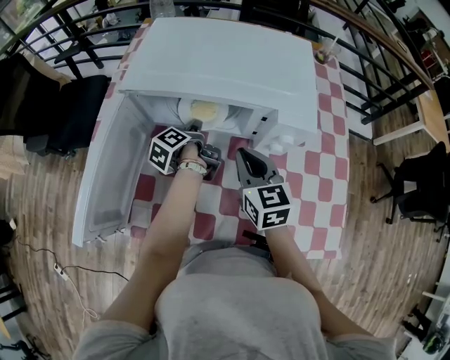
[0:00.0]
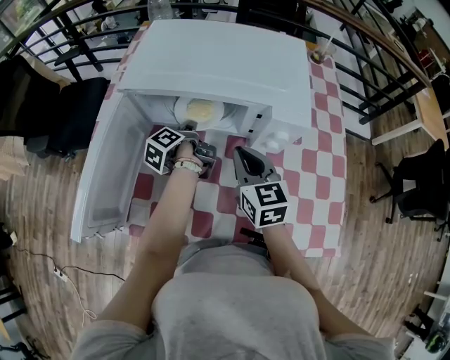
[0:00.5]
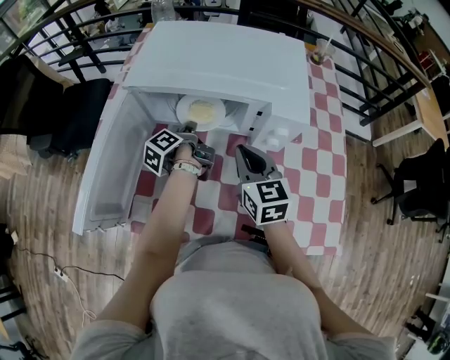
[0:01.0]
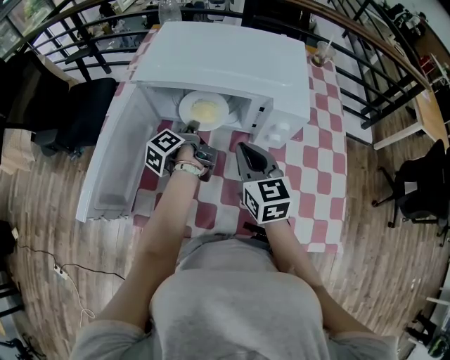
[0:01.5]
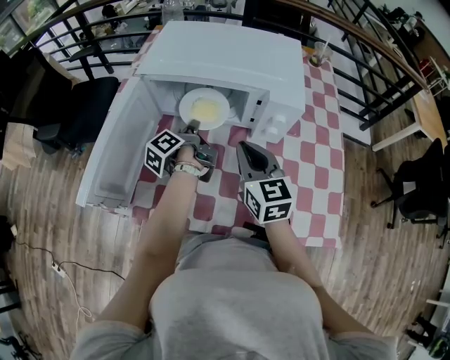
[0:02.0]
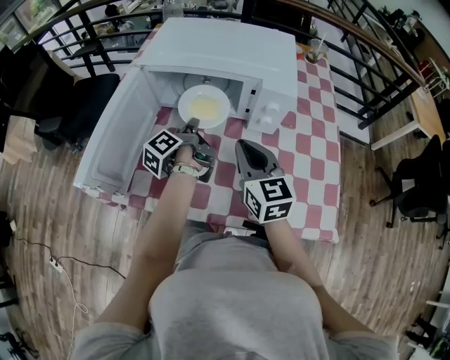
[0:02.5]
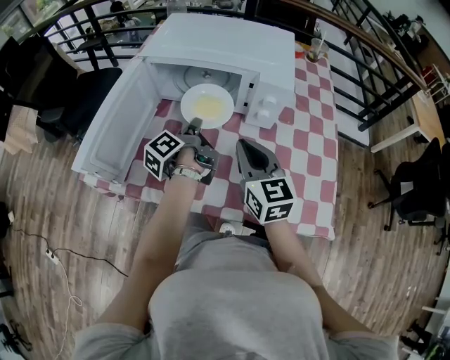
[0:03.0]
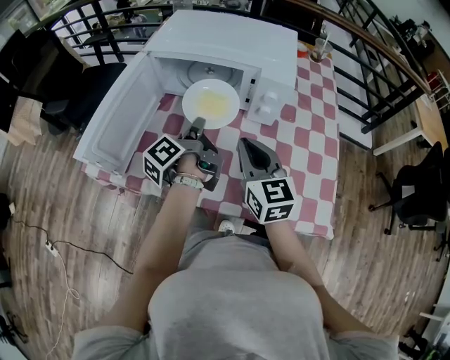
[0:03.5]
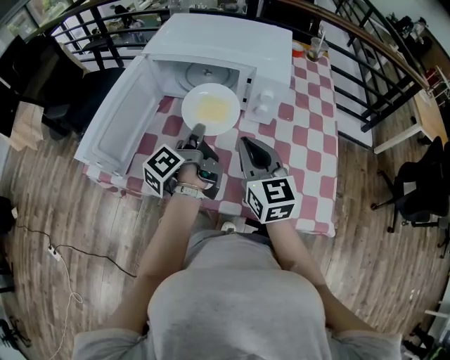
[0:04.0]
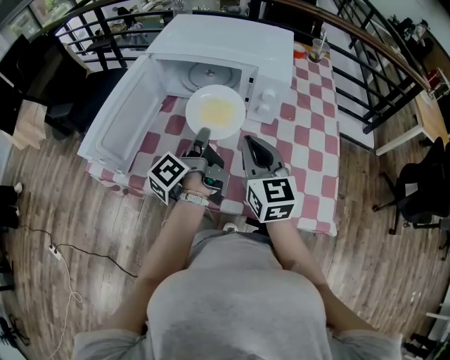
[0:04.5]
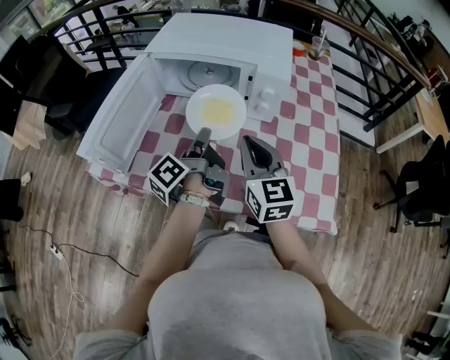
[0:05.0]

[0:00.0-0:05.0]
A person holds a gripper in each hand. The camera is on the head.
0:00.0 to 0:02.5: The two grippers go about 10 cm backward and upward.
0:02.5 to 0:05.0: The right gripper travels backward by approximately 5 cm. Meanwhile the left gripper is displaced backward and upward by approximately 15 cm.

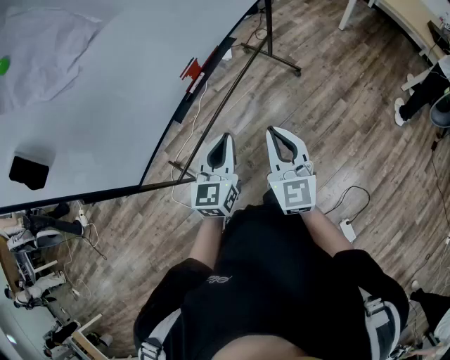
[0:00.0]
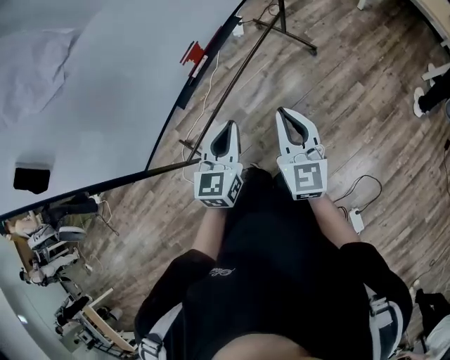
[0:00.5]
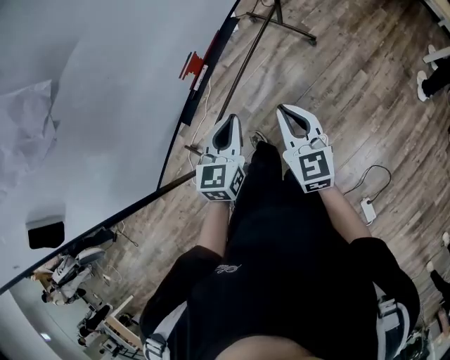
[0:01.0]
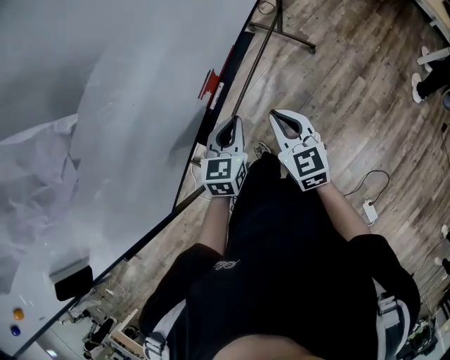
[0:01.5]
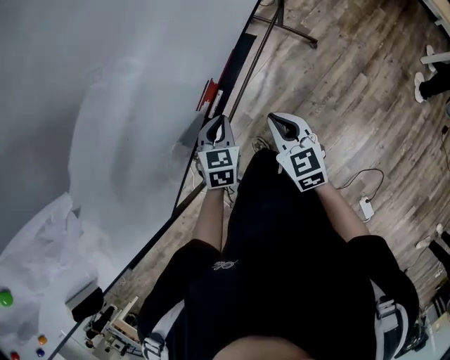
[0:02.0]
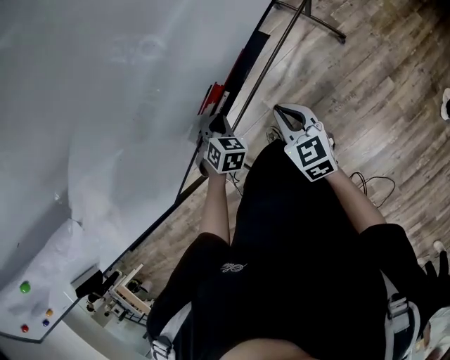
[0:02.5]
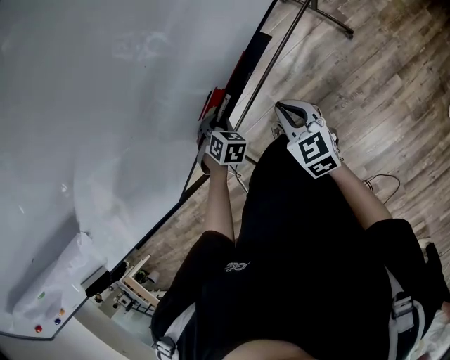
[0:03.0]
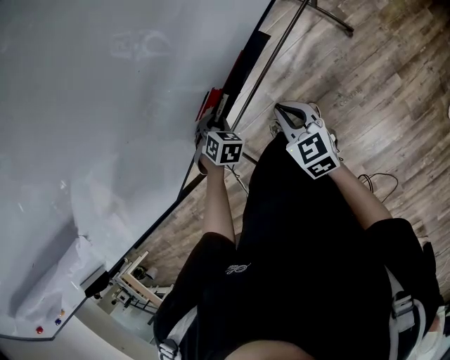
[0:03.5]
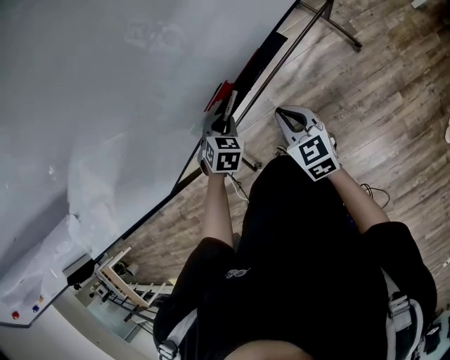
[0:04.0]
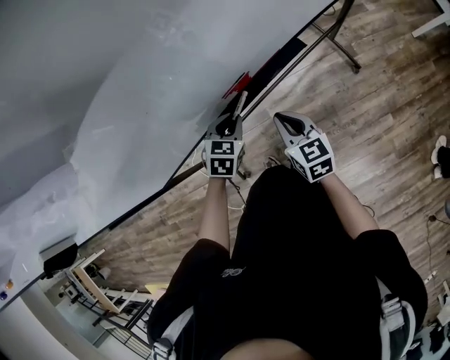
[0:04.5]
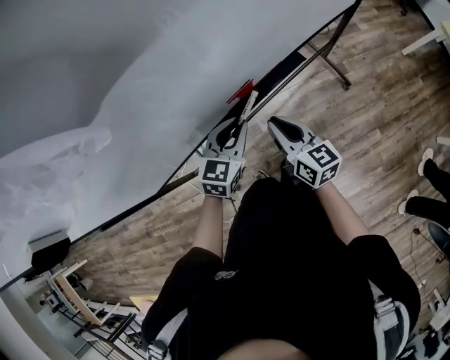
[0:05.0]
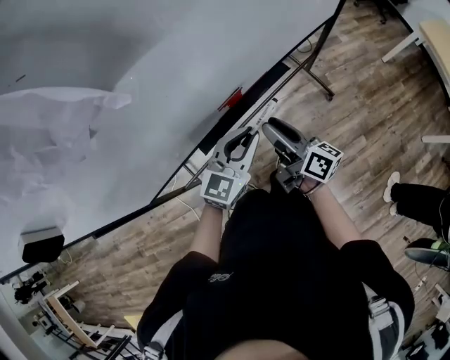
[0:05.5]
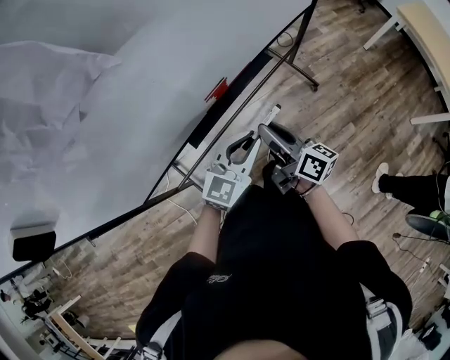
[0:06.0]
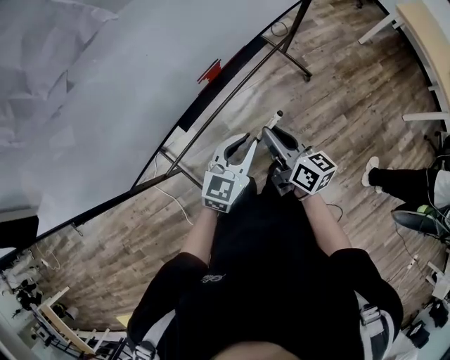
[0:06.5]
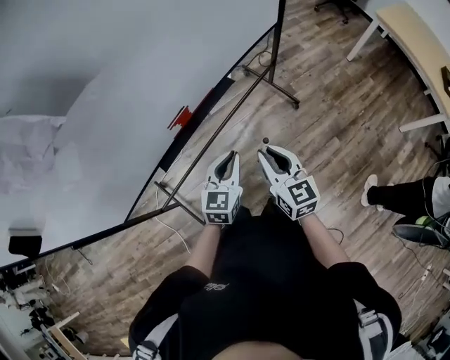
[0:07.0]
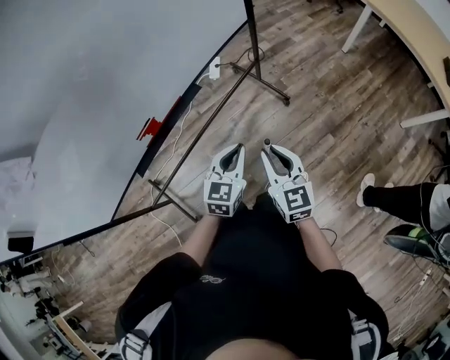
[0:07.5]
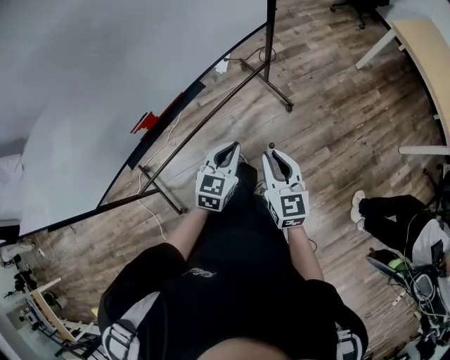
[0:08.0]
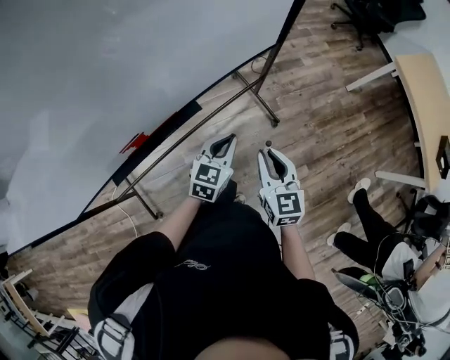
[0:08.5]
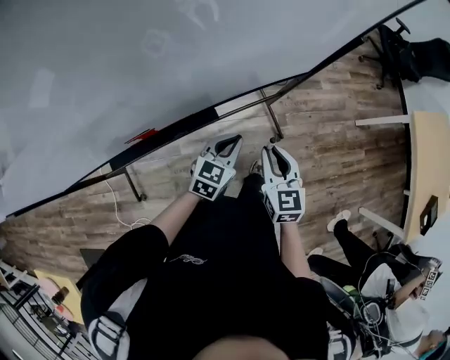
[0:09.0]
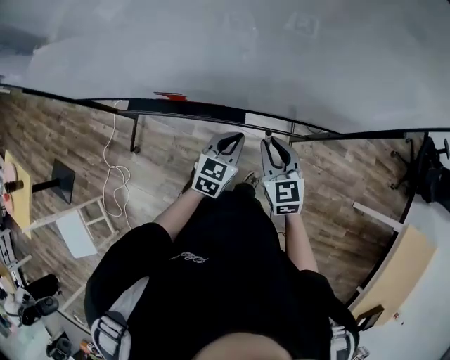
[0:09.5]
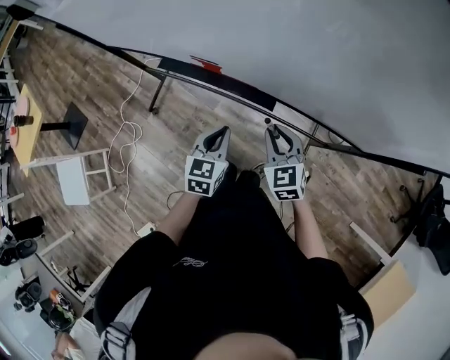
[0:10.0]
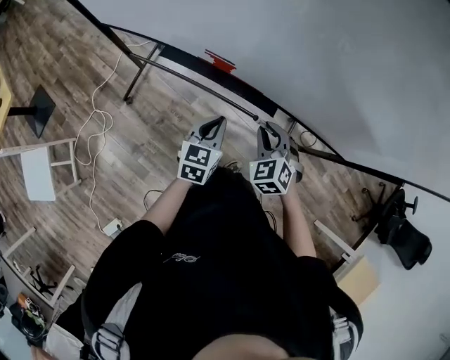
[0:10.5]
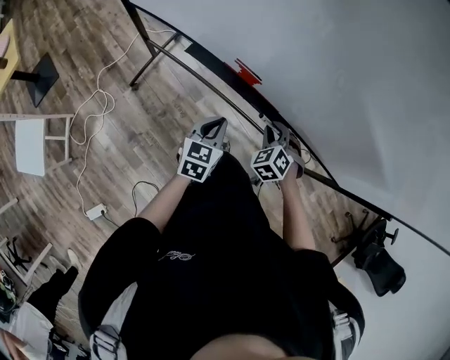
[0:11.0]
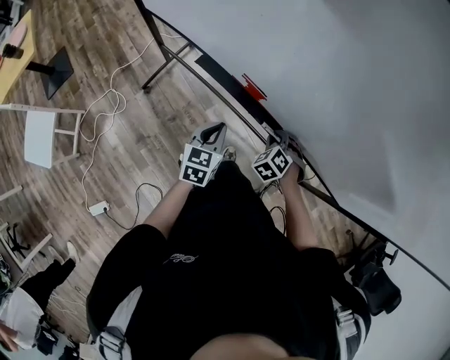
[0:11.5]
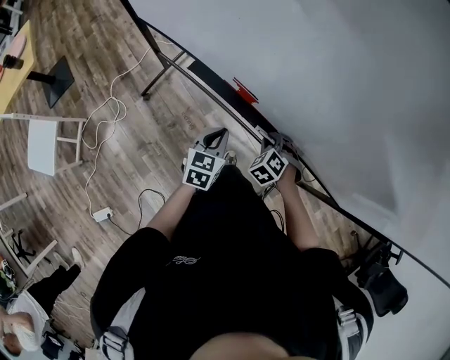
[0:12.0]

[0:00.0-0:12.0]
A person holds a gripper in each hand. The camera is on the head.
0:00.0 to 0:02.0: Both grippers travel together forward and downward, roughly 30 cm. The right gripper turns by approximately 20 degrees. Meanwhile the left gripper swivels approximately 30 degrees.
0:02.0 to 0:04.0: The right gripper moves approximately 10 cm, and changes its angle by roughly 20 degrees, while the left gripper travels downward by some 10 cm, and swivels roughly 30 degrees.
0:04.0 to 0:06.0: The left gripper shifts some 20 cm upward, and tips its fingers upward by approximately 50 degrees, while the right gripper is displaced upward by some 10 cm, and turns by roughly 50 degrees.
0:06.0 to 0:08.0: Both grippers travel together to the right, roughly 30 cm. The left gripper changes its angle by roughly 20 degrees. Meanwhile the right gripper rolls counterclockwise, seen from behind, by roughly 40 degrees.
0:08.0 to 0:10.0: The left gripper changes place by about 15 cm, and changes its angle by roughly 70 degrees. The right gripper ends up some 30 cm from where it was, and changes its angle by approximately 80 degrees.
0:10.0 to 0:12.0: The right gripper shifts roughly 20 cm downward, forward and to the left, and points its fingers approximately 30 degrees further downward. Meanwhile the left gripper is displaced to the left and forward by about 10 cm.

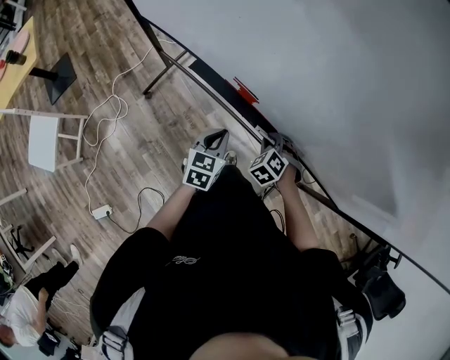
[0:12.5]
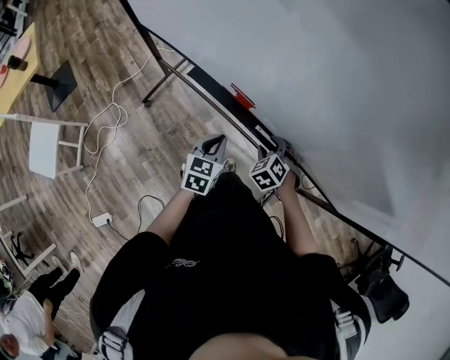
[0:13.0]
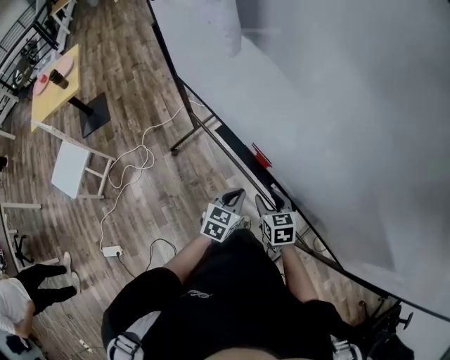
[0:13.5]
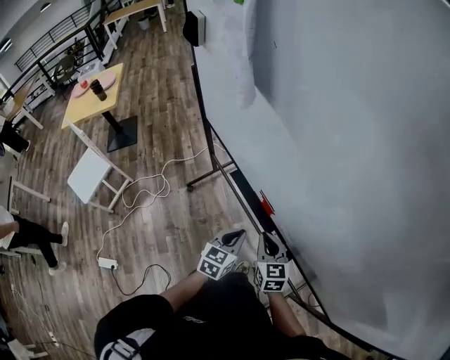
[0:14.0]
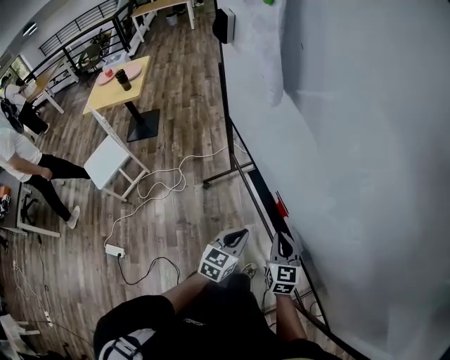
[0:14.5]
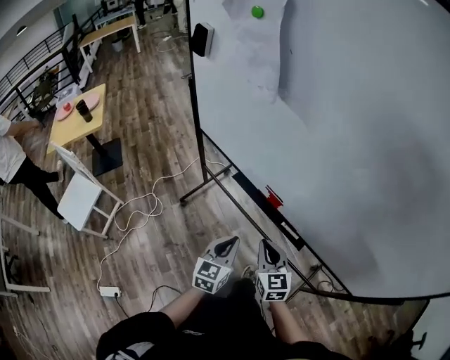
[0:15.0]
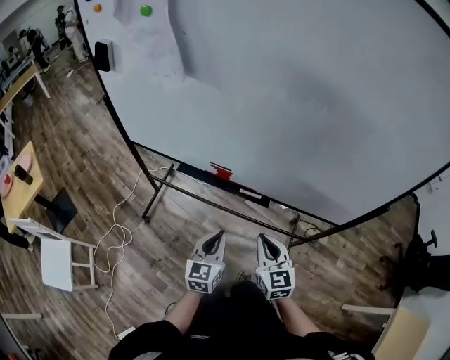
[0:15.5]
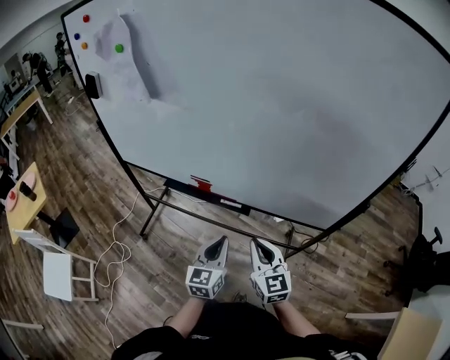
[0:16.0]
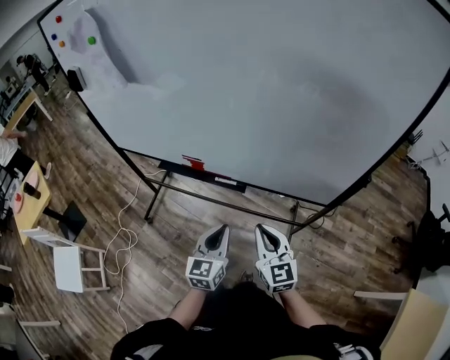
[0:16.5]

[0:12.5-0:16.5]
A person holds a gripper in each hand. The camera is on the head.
0:12.5 to 0:14.5: The right gripper goes about 15 cm upward, angles its fingers upward, by some 40 degrees, and opens, then closes again; the left gripper moves upward, some 10 cm, and turns by some 20 degrees.
0:14.5 to 0:16.5: The left gripper shifts by approximately 25 cm, and changes its angle by about 30 degrees. Meanwhile the right gripper shifts by some 35 cm, and swivels about 30 degrees.

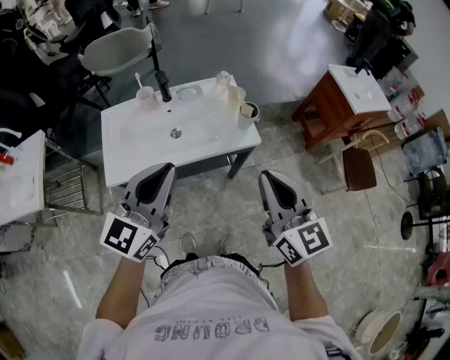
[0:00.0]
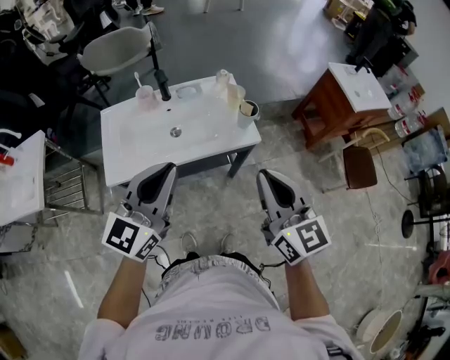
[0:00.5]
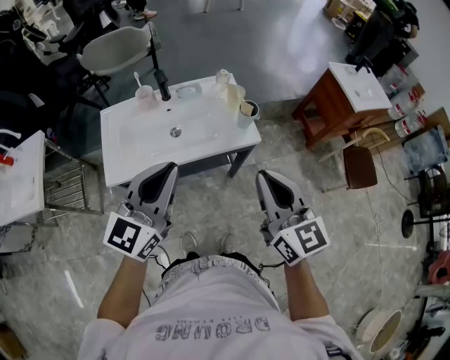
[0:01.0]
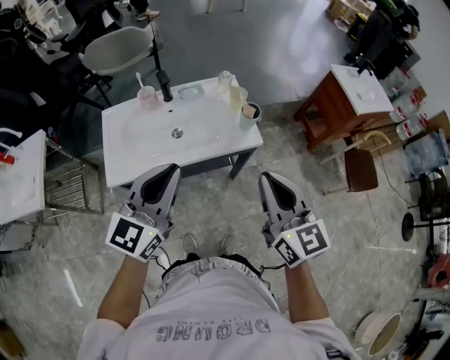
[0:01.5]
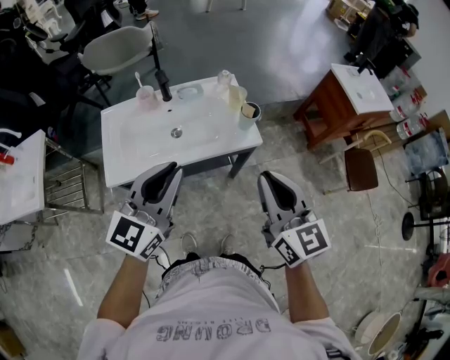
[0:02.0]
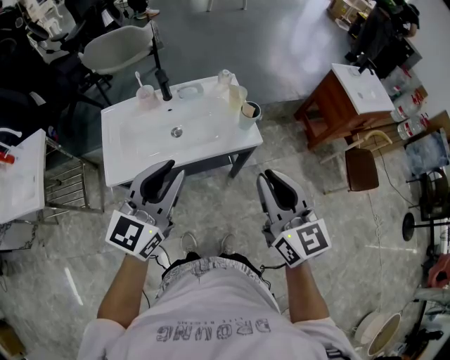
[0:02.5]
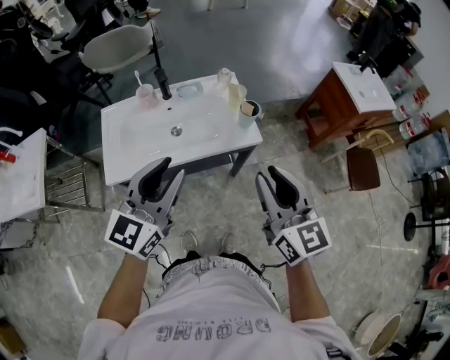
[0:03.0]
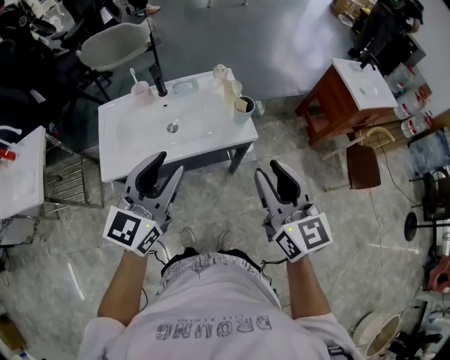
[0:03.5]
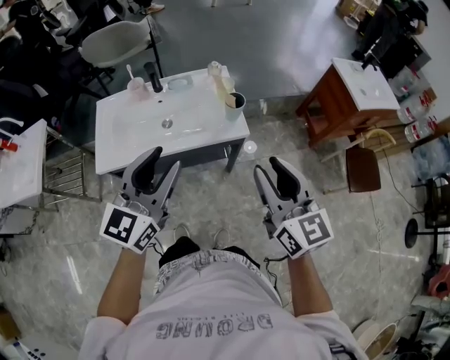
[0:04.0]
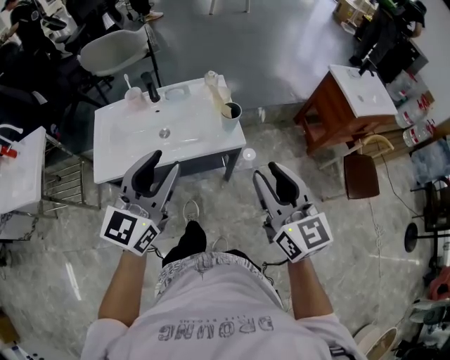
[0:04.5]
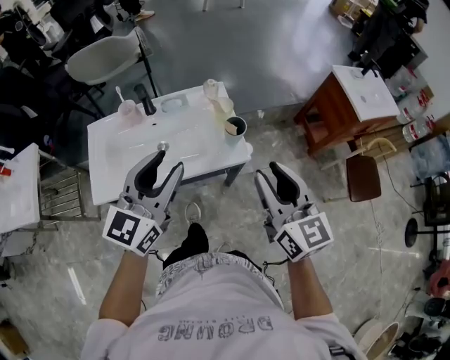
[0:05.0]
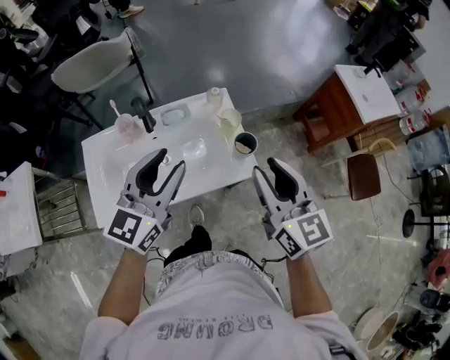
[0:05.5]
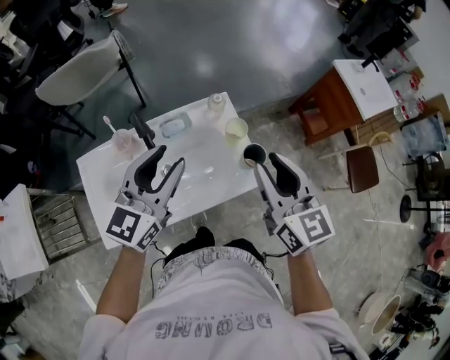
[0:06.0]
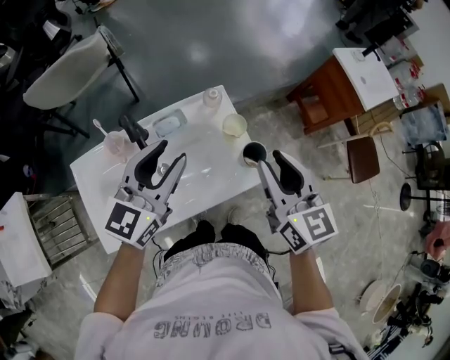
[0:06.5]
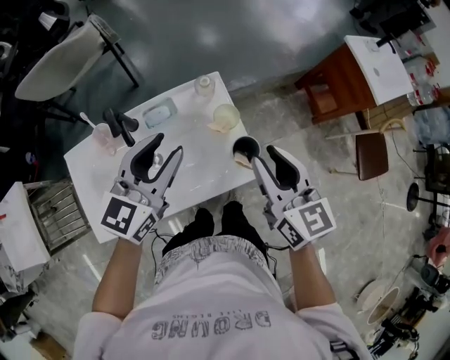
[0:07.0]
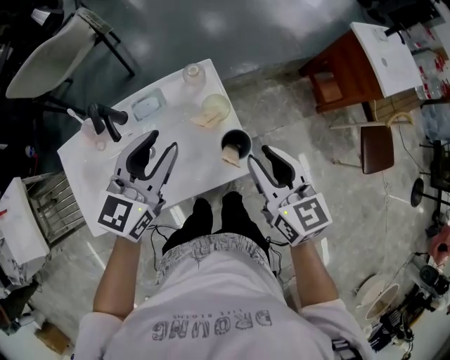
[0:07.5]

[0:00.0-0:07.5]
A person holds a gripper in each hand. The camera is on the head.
0:00.0 to 0:02.0: The grippers move only a little.
0:02.0 to 0:04.0: The two grippers go about 10 cm to the right. The left gripper opens, while the right gripper opens up.
0:04.0 to 0:05.5: Both grippers move forward, about 20 cm.
0:05.5 to 0:07.5: The left gripper heads forward and downward, covering roughly 15 cm. The right gripper heads downward and forward, covering roughly 15 cm.
